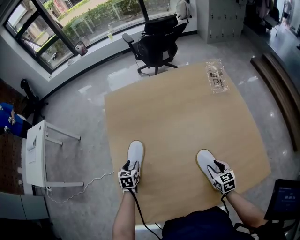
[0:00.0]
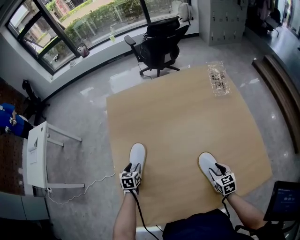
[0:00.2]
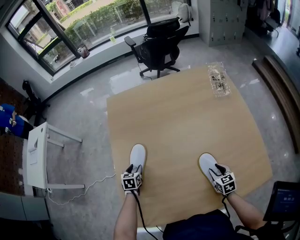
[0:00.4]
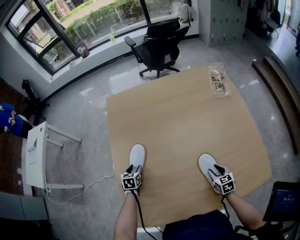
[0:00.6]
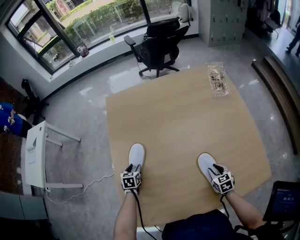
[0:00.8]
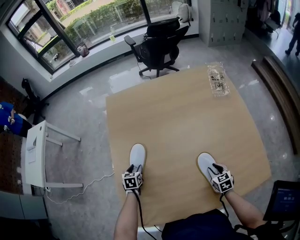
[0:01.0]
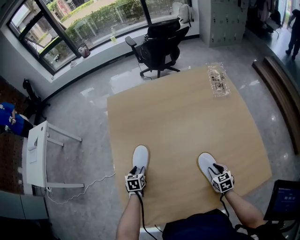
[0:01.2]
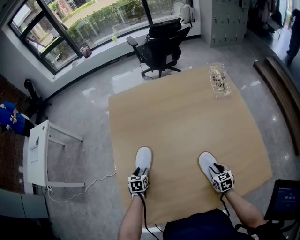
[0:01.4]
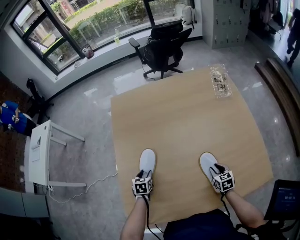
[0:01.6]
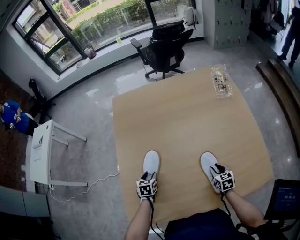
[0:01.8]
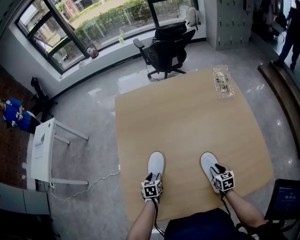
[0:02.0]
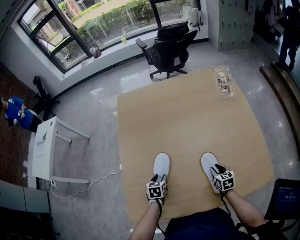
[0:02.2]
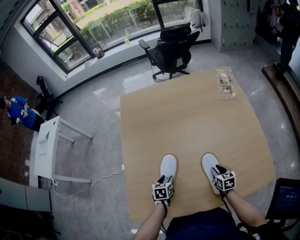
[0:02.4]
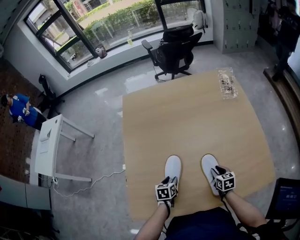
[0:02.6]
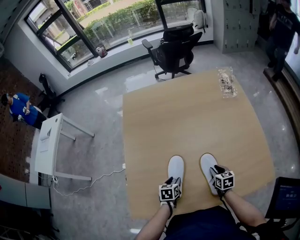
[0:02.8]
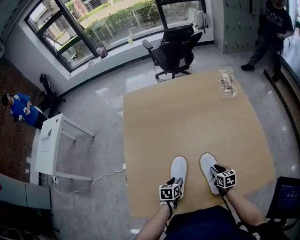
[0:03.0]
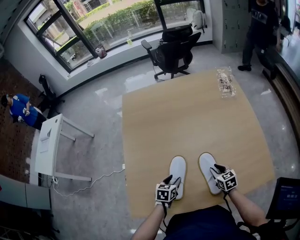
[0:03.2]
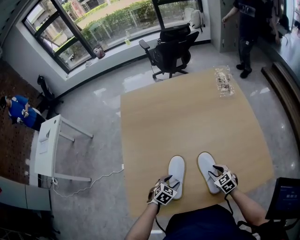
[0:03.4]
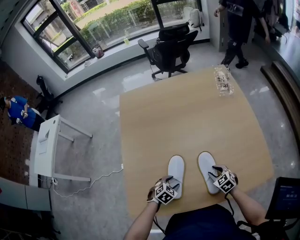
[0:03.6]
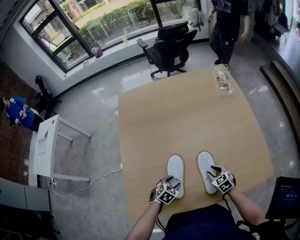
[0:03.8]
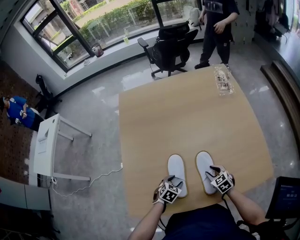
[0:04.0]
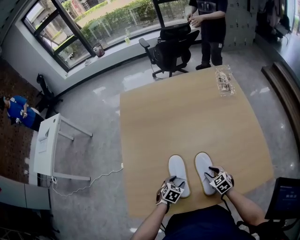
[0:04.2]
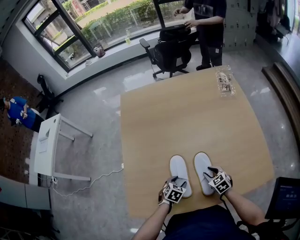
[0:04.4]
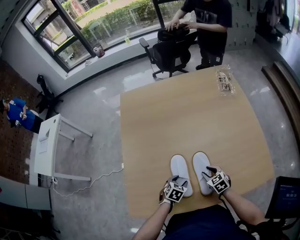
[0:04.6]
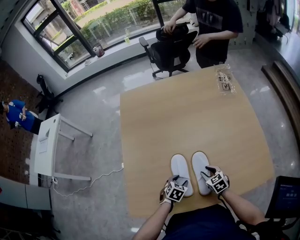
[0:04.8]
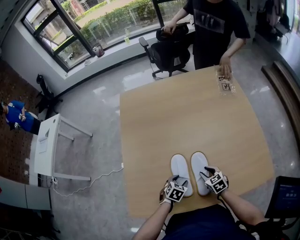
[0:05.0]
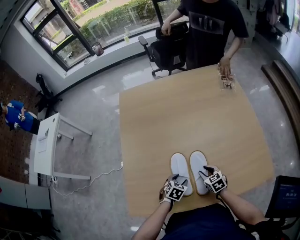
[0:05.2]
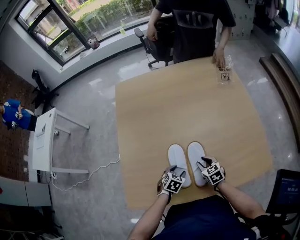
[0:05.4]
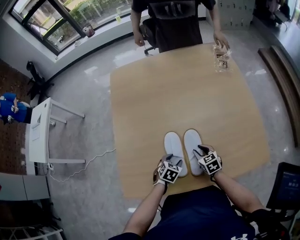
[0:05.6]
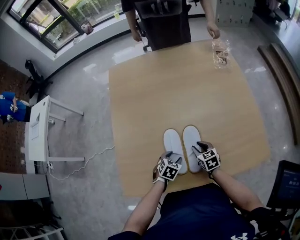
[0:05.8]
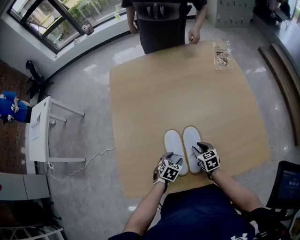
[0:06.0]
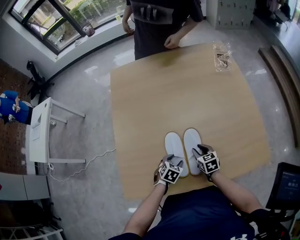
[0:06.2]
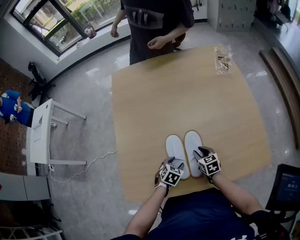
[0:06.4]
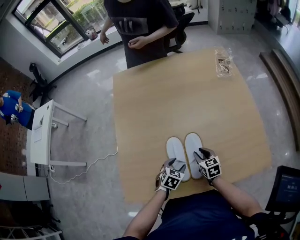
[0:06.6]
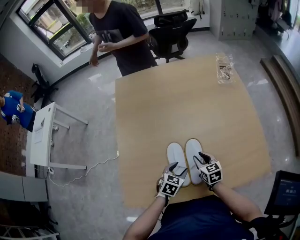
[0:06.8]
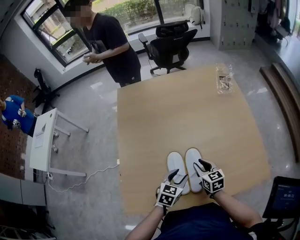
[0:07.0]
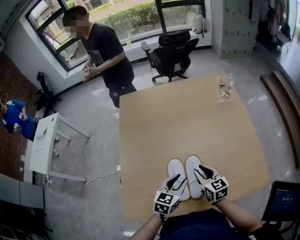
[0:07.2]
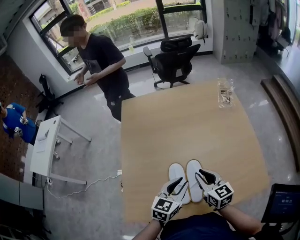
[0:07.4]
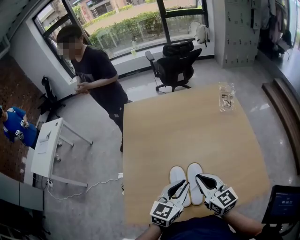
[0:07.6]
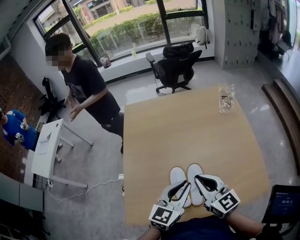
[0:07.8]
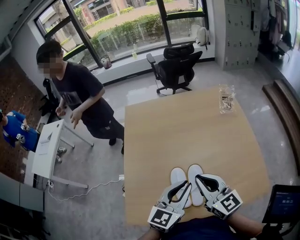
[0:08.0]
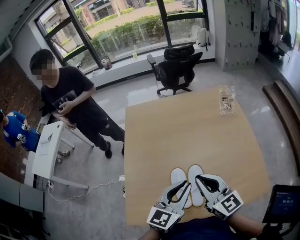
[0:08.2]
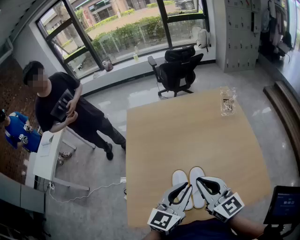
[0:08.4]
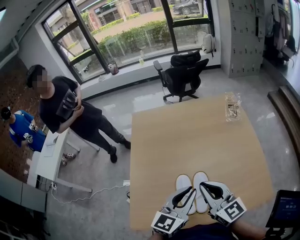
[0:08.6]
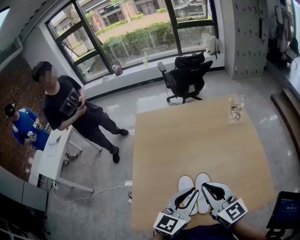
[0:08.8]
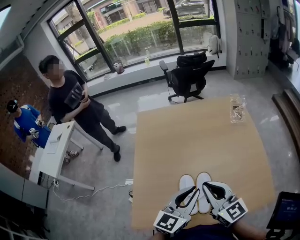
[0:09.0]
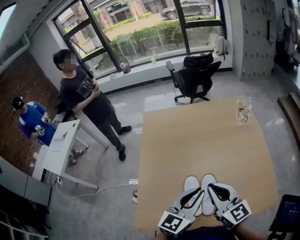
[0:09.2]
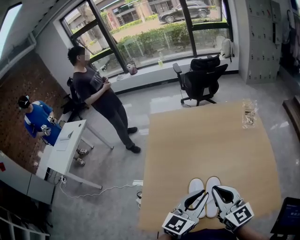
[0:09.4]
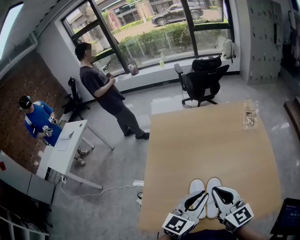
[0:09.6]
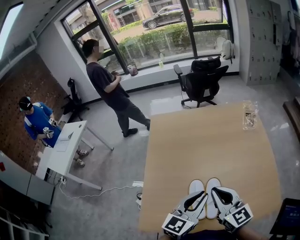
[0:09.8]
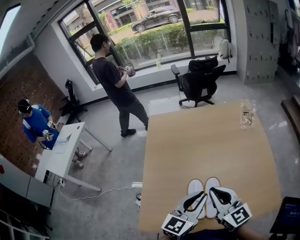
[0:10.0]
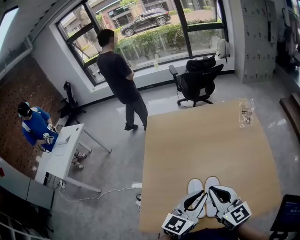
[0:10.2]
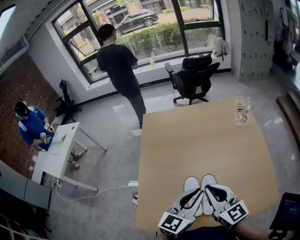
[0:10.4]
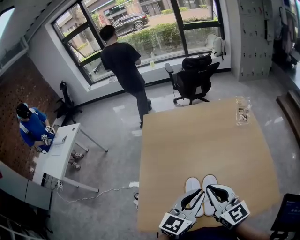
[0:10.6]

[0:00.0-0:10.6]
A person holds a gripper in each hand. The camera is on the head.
0:00.0 to 0:01.6: The left gripper travels backward by roughly 5 cm.
0:01.6 to 0:03.0: The left gripper moves to the right and backward, roughly 20 cm.
0:03.0 to 0:04.6: The left gripper moves some 5 cm, and swivels approximately 30 degrees. The right gripper turns by approximately 30 degrees.
0:04.6 to 0:06.0: The grippers stay close to where they were, moving slightly.
0:06.0 to 0:07.6: The two grippers go approximately 30 cm upward. The right gripper points its fingers about 30 degrees further upward, and closes its fingers. Meanwhile the left gripper tilts its fingers about 40 degrees upward, and closes its fingers.
0:07.6 to 0:09.0: Both grippers move upward, roughly 10 cm.
0:09.0 to 0:10.6: The grippers move only a little.

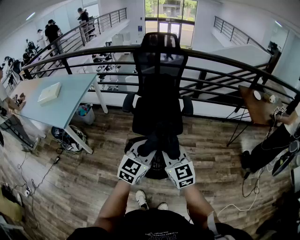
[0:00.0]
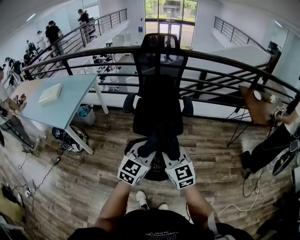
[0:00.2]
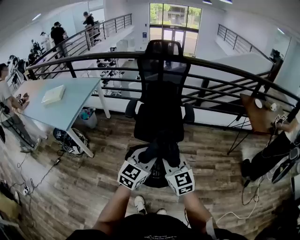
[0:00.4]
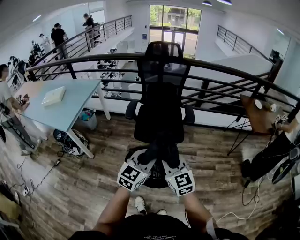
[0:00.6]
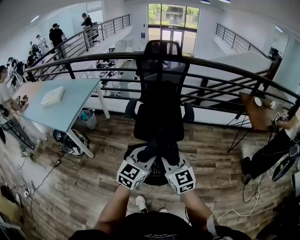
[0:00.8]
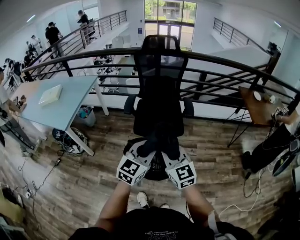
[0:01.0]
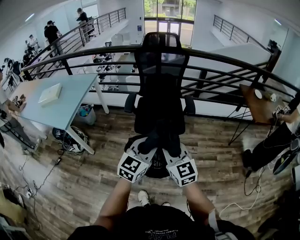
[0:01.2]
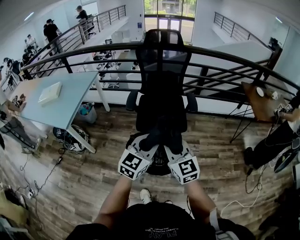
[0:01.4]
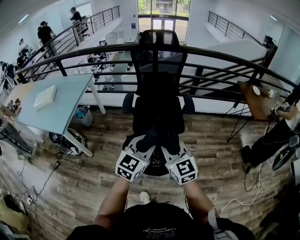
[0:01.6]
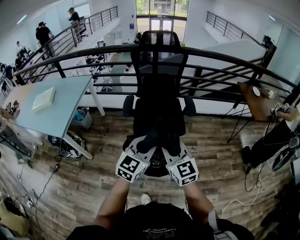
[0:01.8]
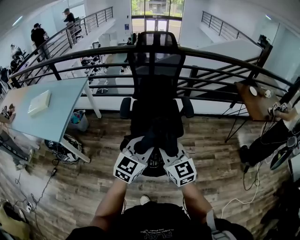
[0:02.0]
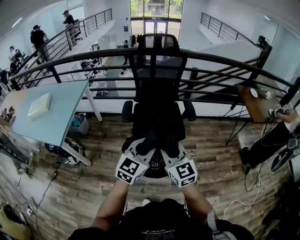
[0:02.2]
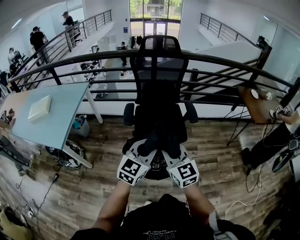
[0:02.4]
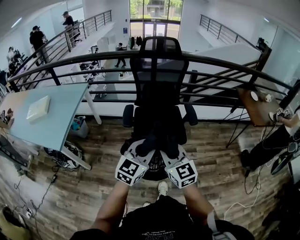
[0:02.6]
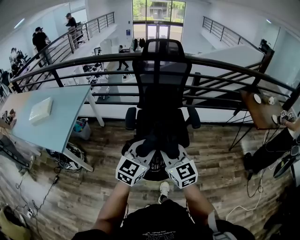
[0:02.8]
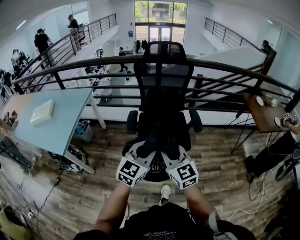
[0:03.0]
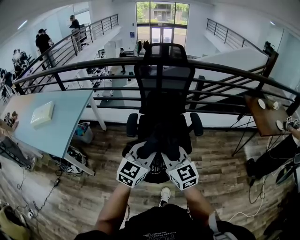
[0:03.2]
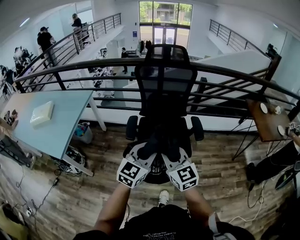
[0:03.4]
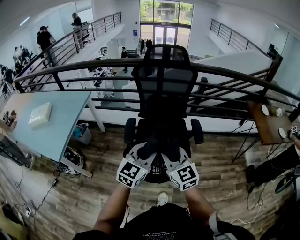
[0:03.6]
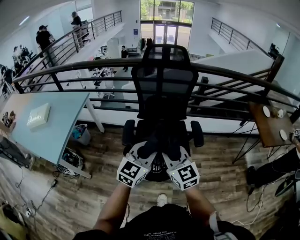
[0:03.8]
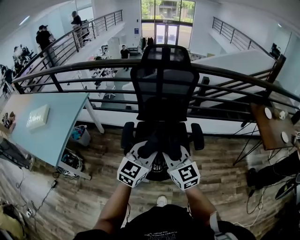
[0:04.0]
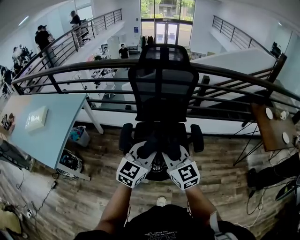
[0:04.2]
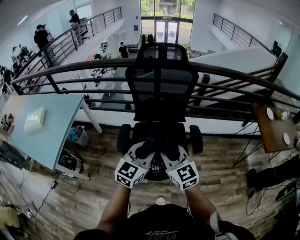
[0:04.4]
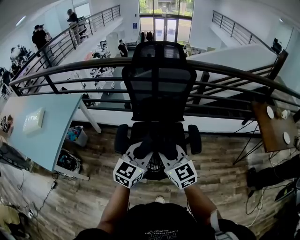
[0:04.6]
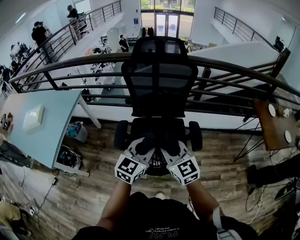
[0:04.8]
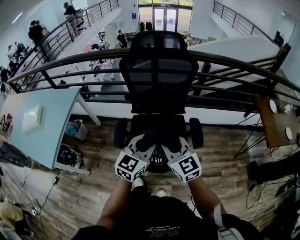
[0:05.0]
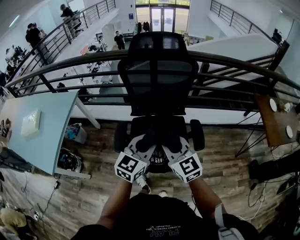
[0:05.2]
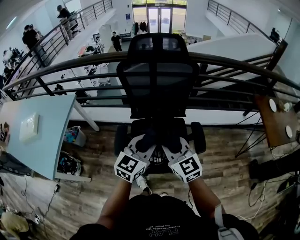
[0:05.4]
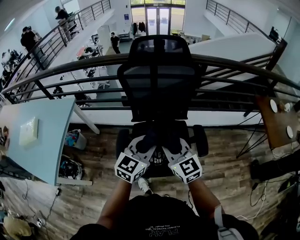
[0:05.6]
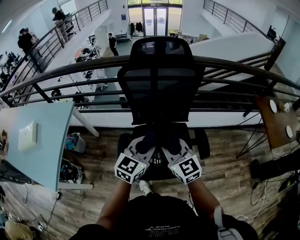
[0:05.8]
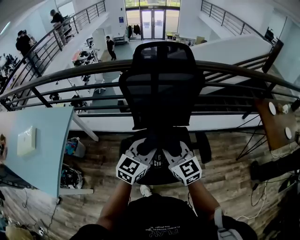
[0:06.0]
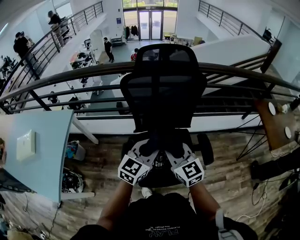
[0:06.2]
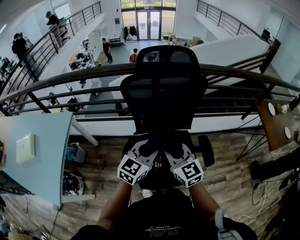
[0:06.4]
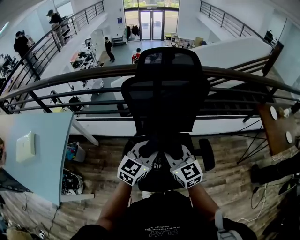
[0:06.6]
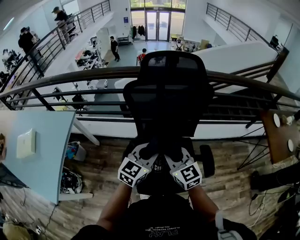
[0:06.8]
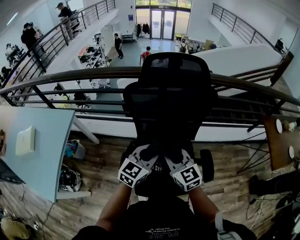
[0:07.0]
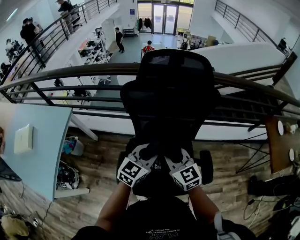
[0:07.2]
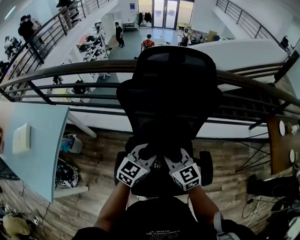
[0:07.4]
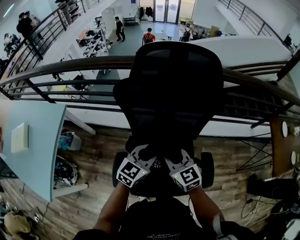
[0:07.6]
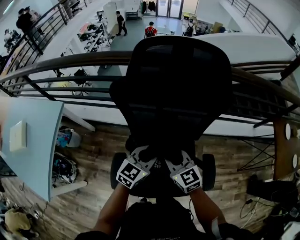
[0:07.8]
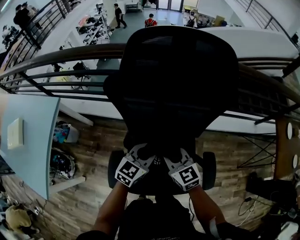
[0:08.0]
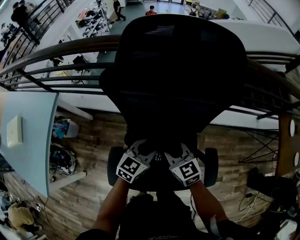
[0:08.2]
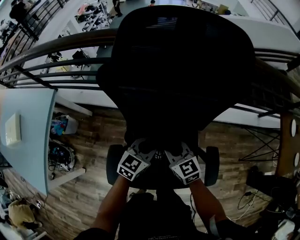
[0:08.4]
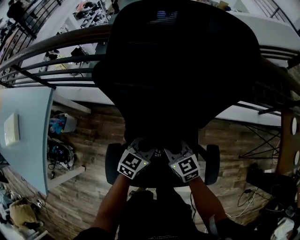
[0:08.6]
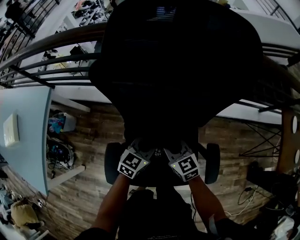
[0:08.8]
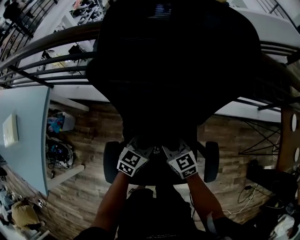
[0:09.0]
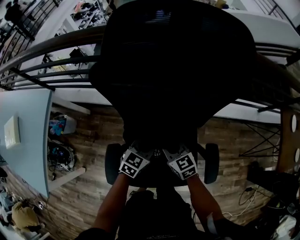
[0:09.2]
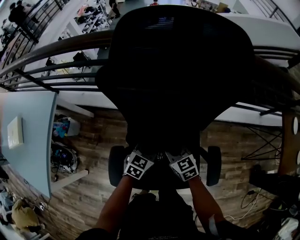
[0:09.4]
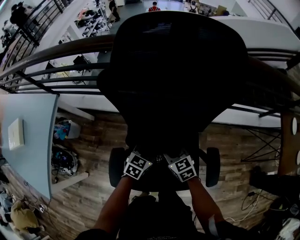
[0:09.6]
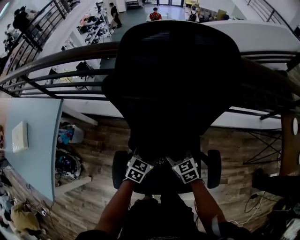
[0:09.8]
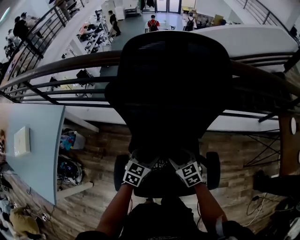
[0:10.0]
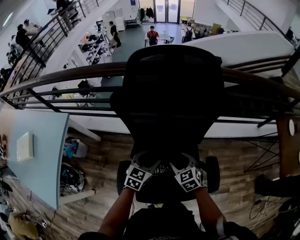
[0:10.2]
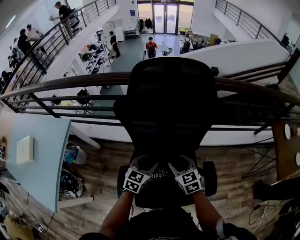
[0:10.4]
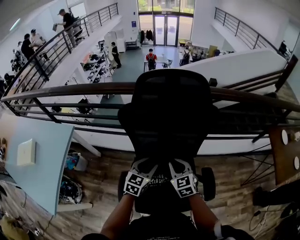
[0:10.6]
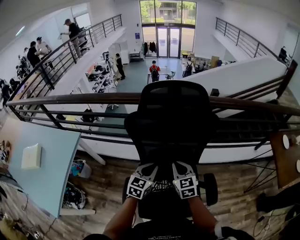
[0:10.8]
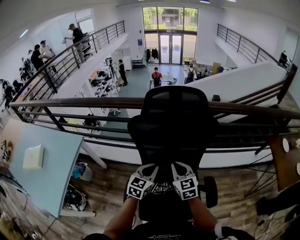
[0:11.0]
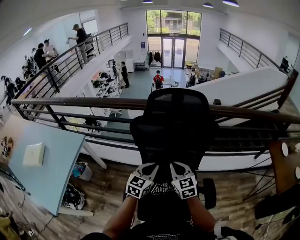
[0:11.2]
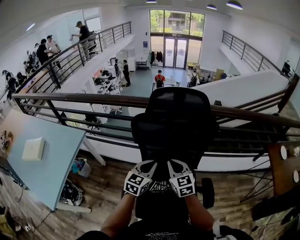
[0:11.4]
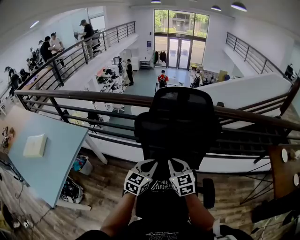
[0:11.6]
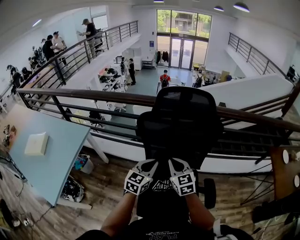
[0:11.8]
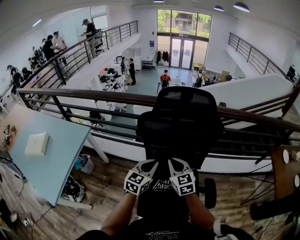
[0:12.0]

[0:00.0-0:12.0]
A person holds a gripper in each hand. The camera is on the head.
0:00.0 to 0:01.6: The left gripper ends up about 5 cm from where it was. The right gripper changes place by roughly 5 cm.
0:01.6 to 0:03.0: Both grippers move forward and to the left, some 15 cm.
0:03.0 to 0:04.4: The two grippers go approximately 20 cm forward.
0:04.4 to 0:06.0: Both grippers travel together forward, roughly 15 cm.
0:06.0 to 0:07.6: The two grippers go approximately 20 cm forward and downward.
0:07.6 to 0:09.0: The two grippers go some 15 cm downward.
0:09.0 to 0:10.4: The two grippers go roughly 10 cm upward. The left gripper opens its fingers, while the right gripper opens up.
0:10.4 to 0:12.0: The left gripper heads upward and backward, covering about 15 cm, and closes its fingers, while the right gripper goes approximately 15 cm upward and to the left, and closes.

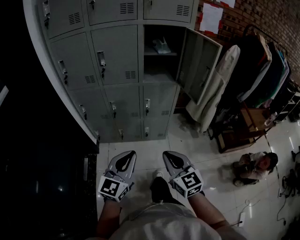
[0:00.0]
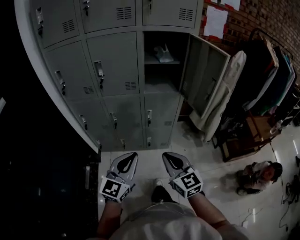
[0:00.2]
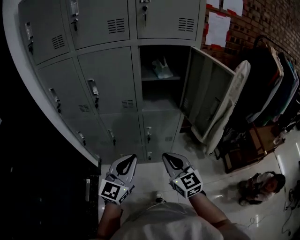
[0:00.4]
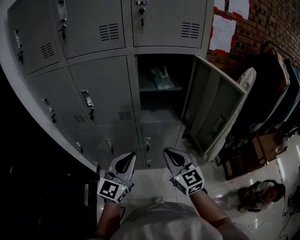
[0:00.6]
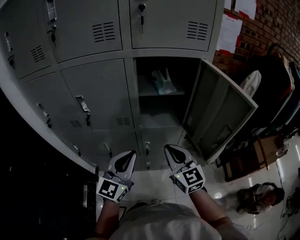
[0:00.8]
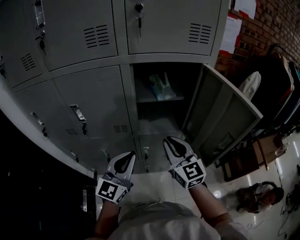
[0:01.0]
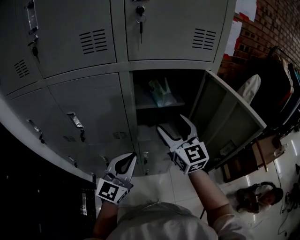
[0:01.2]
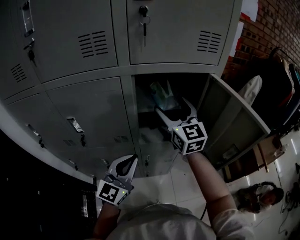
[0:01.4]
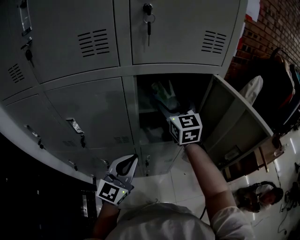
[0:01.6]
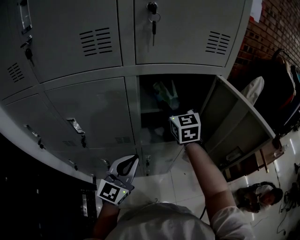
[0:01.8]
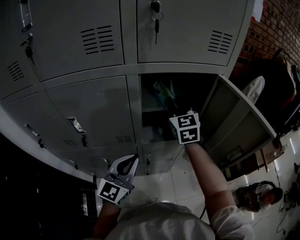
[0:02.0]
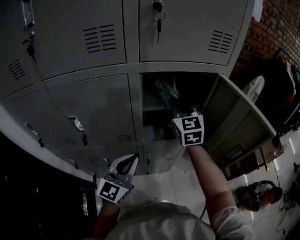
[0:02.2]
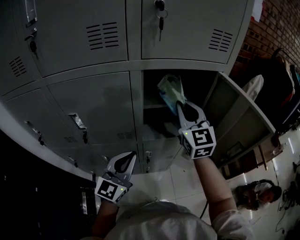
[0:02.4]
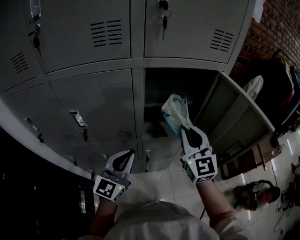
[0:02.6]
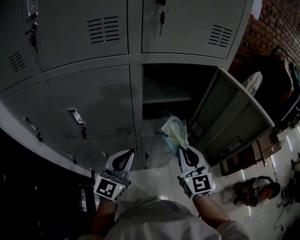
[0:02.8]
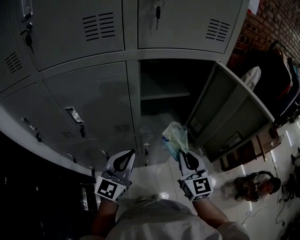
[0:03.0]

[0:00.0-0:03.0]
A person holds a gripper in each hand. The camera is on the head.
0:00.0 to 0:01.6: Both grippers are carried forward, roughly 50 cm. The right gripper opens up.
0:01.6 to 0:03.0: The right gripper moves backward and downward, some 25 cm, and closes its fingers.
